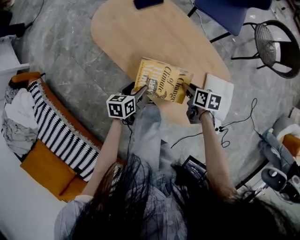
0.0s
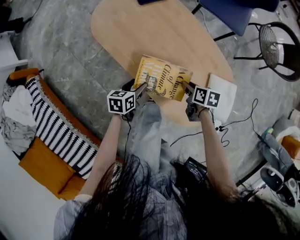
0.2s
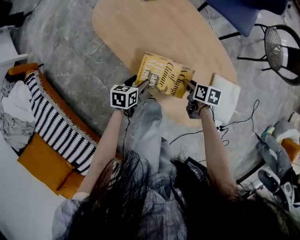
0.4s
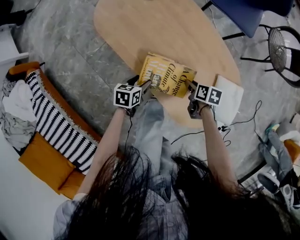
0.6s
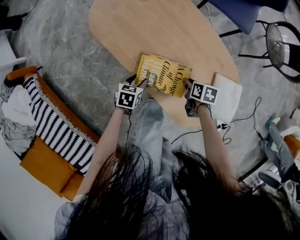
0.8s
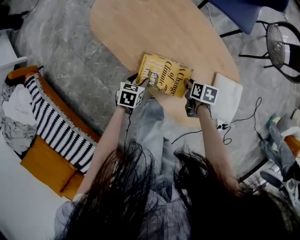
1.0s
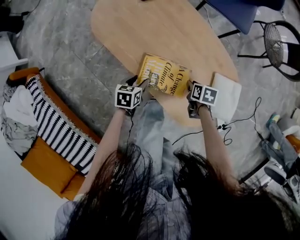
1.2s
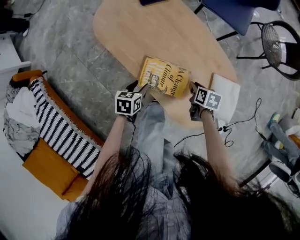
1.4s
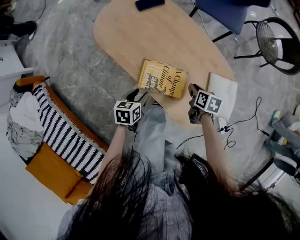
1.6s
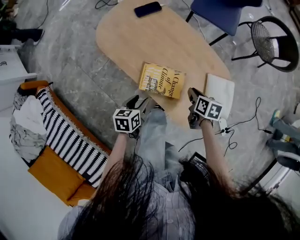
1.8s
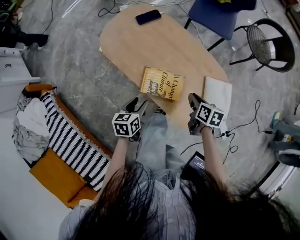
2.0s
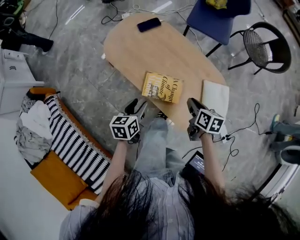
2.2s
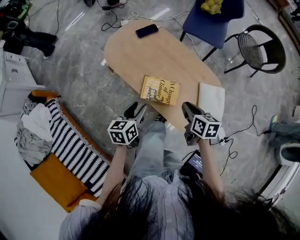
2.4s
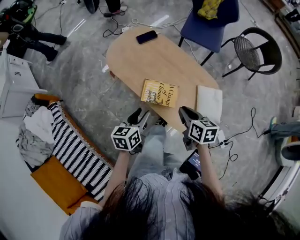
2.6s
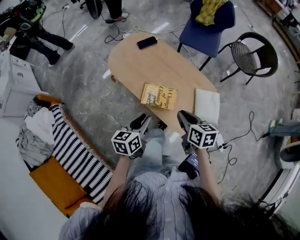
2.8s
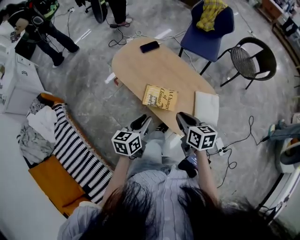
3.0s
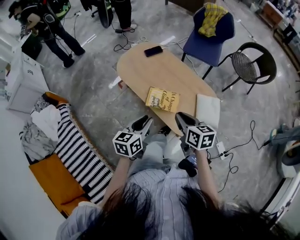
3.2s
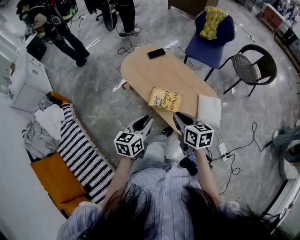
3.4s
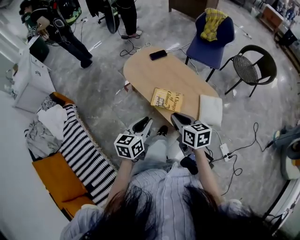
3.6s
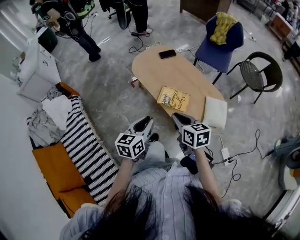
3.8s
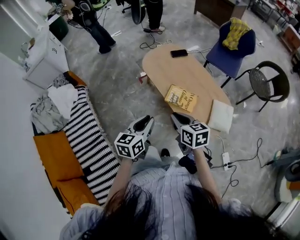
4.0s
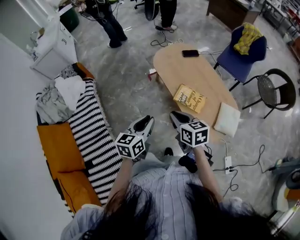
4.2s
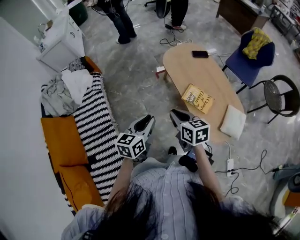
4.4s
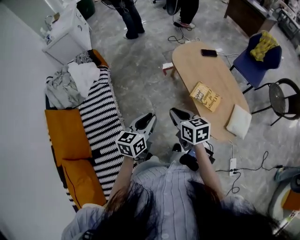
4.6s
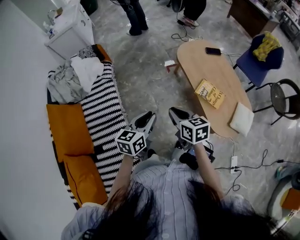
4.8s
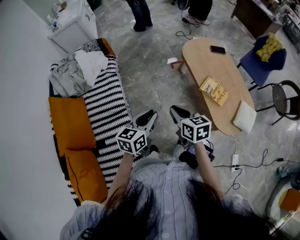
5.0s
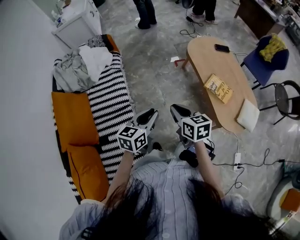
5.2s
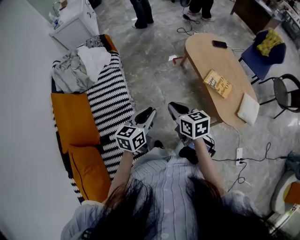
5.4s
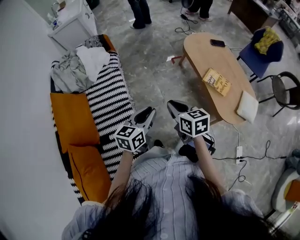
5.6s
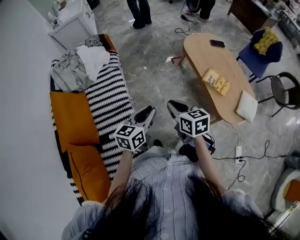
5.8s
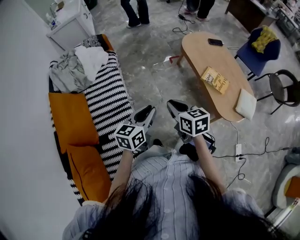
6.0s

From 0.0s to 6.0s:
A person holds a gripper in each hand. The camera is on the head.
From 0.0s to 1.6s: The right gripper goes downward and returns, approximately 10 cm each way. The left gripper moves some 10 cm downward and comes back.
From 1.6s to 3.0s: Both grippers travel together upward and backward, about 30 cm. The left gripper changes its angle by some 30 degrees, and closes its fingers, while the right gripper rotates some 30 degrees.
From 3.0s to 4.4s: The right gripper shifts by some 25 cm, and rotates roughly 30 degrees. The left gripper shifts by about 25 cm, and swivels roughly 20 degrees.
From 4.4s to 6.0s: The grippers both shift to the left and backward by roughly 25 cm.

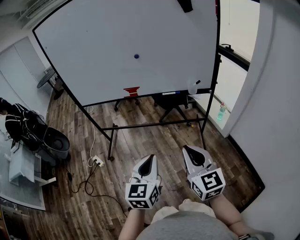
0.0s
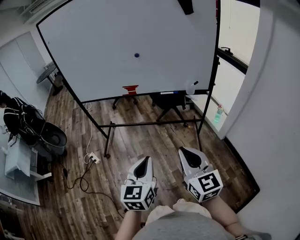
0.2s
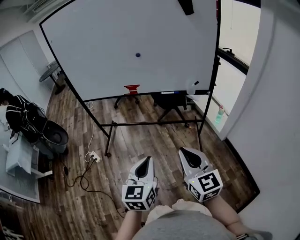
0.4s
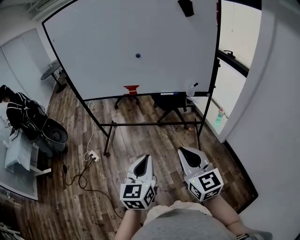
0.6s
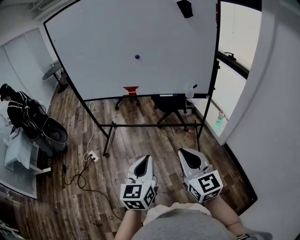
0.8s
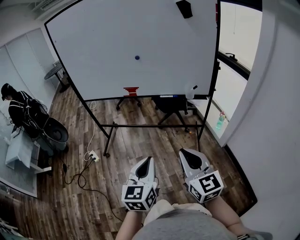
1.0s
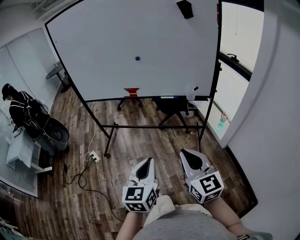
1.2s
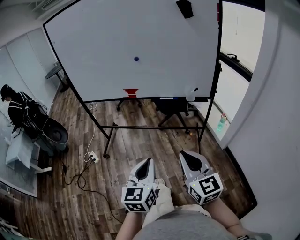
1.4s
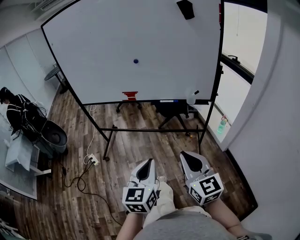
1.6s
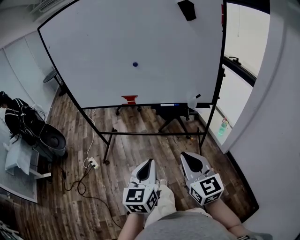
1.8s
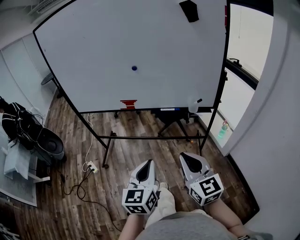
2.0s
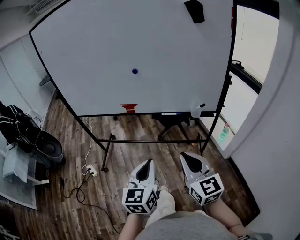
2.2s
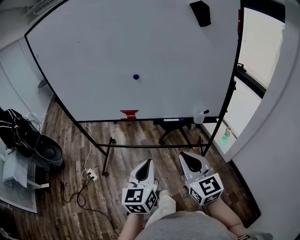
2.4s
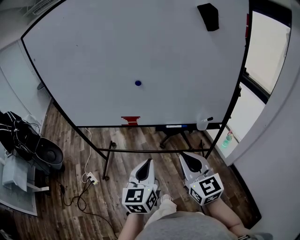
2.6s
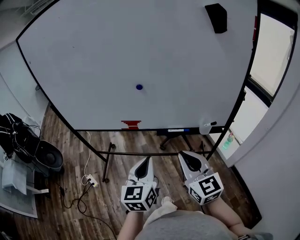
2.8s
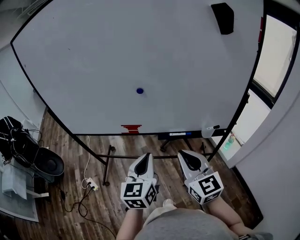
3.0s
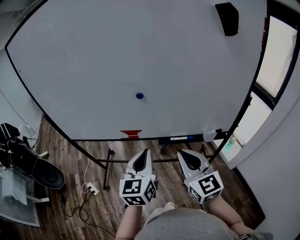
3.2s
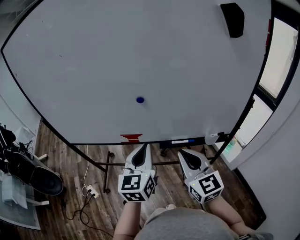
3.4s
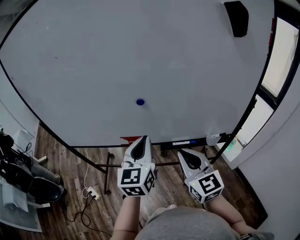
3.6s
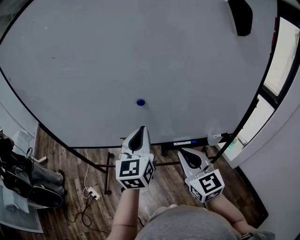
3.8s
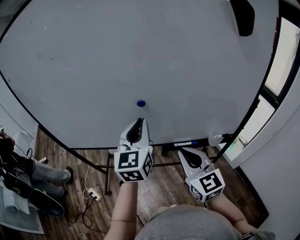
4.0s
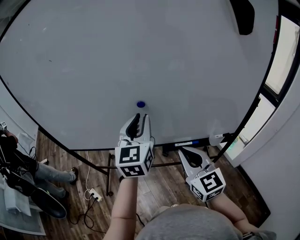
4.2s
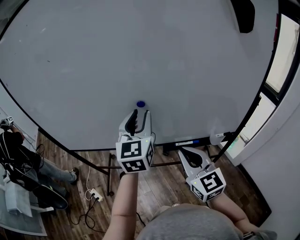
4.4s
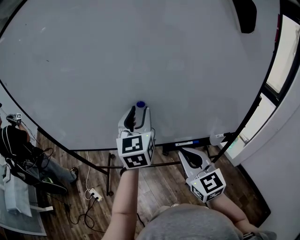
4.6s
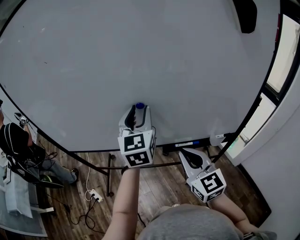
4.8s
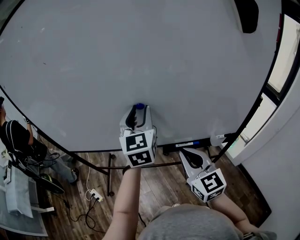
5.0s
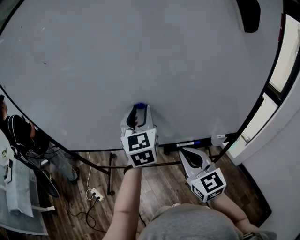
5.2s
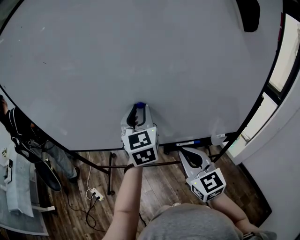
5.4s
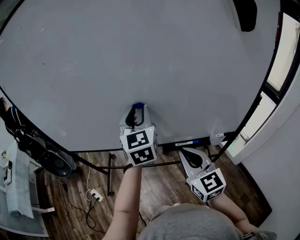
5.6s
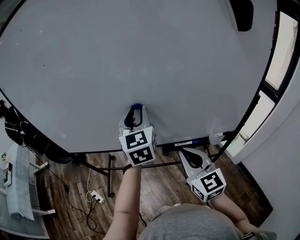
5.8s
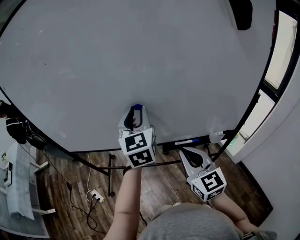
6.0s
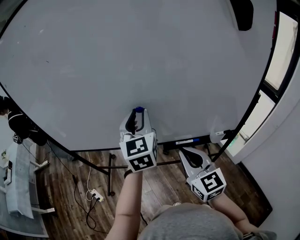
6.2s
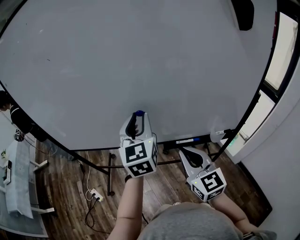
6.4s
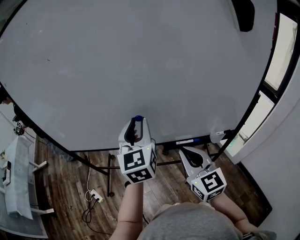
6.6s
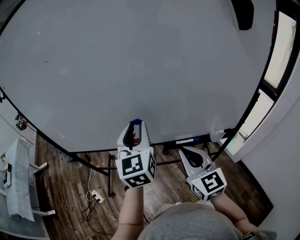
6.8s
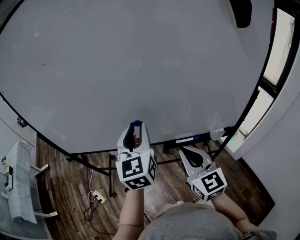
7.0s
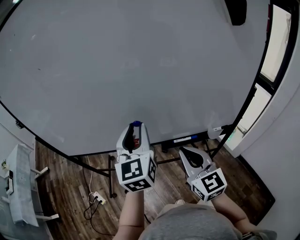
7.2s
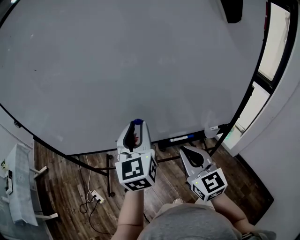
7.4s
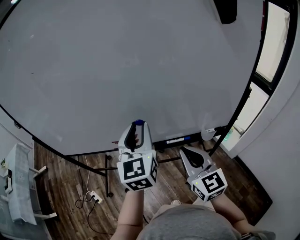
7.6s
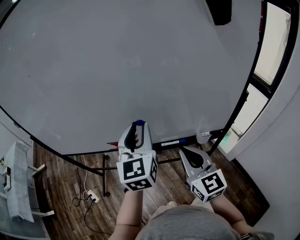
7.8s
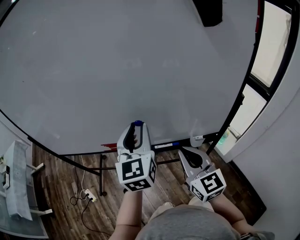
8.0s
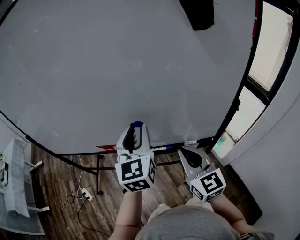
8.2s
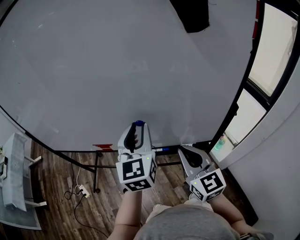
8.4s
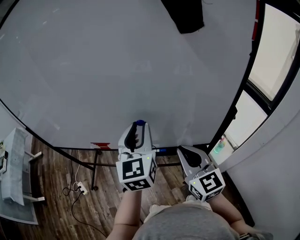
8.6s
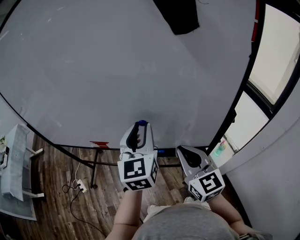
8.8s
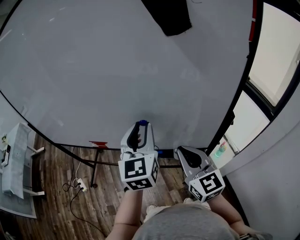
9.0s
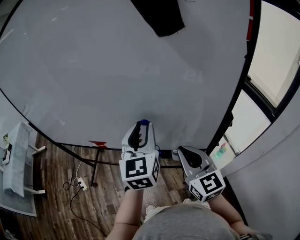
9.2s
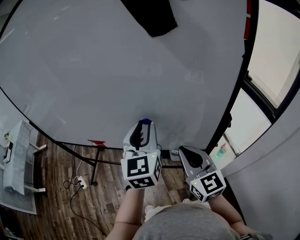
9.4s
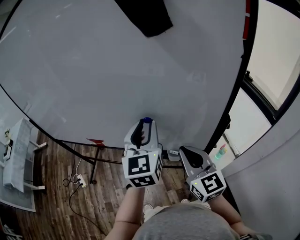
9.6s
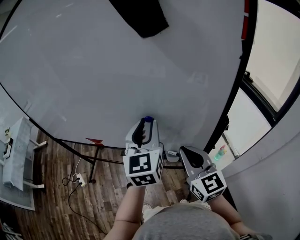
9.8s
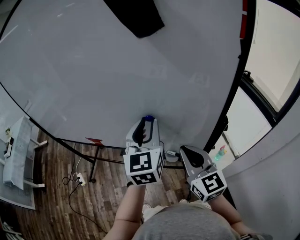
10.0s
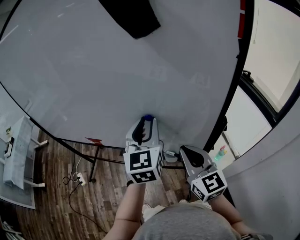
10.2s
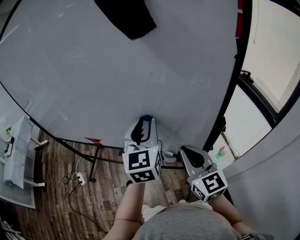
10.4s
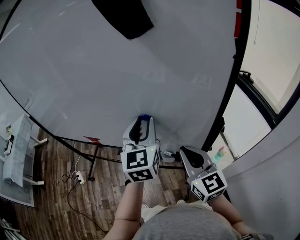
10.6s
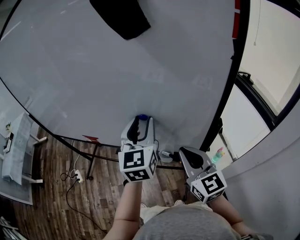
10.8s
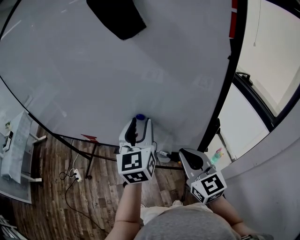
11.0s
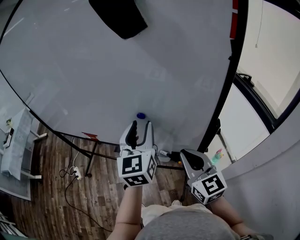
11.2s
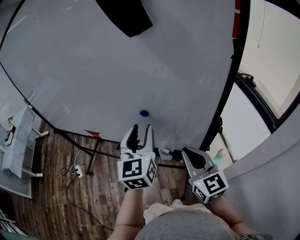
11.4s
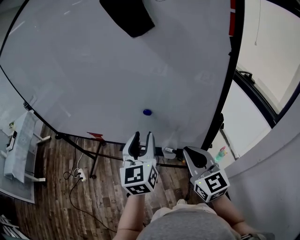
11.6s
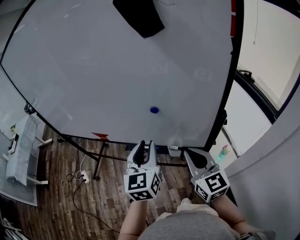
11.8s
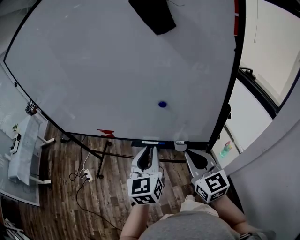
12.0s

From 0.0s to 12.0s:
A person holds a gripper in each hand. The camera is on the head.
From 0.0s to 1.6s: The grippers both shift to the right by about 5 cm.
From 1.6s to 3.0s: The grippers both shift forward by approximately 30 cm.
From 3.0s to 4.4s: The right gripper is displaced forward by roughly 10 cm, while the left gripper is displaced forward and upward by approximately 25 cm, and opens.
From 4.4s to 6.0s: The grippers move only a little.
From 6.0s to 7.6s: The left gripper is displaced backward by some 5 cm.
From 7.6s to 9.0s: Both grippers travel together to the right, some 20 cm.
From 9.0s to 10.4s: Both grippers travel together to the right, about 5 cm.
From 10.4s to 12.0s: The left gripper is displaced backward, to the left and downward by some 15 cm. The right gripper heads backward and to the left, covering approximately 10 cm.

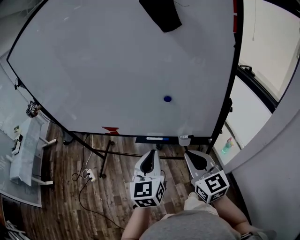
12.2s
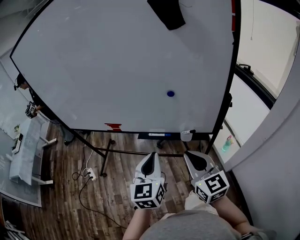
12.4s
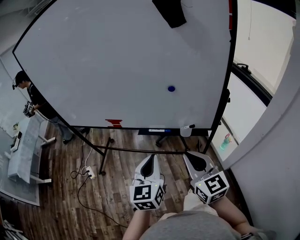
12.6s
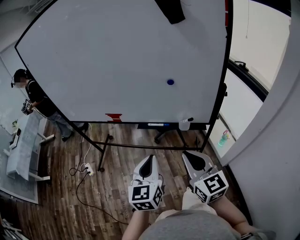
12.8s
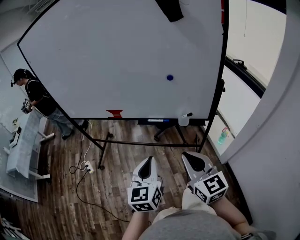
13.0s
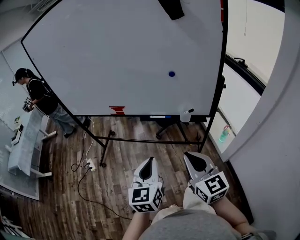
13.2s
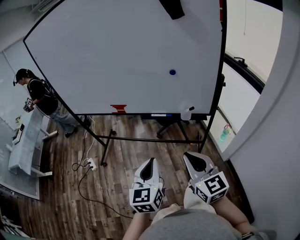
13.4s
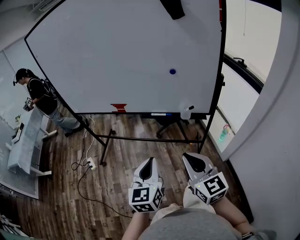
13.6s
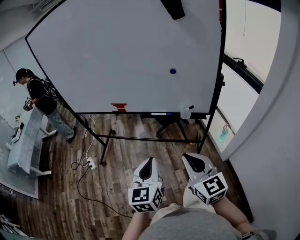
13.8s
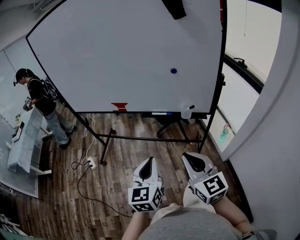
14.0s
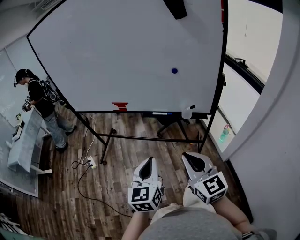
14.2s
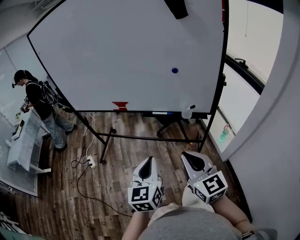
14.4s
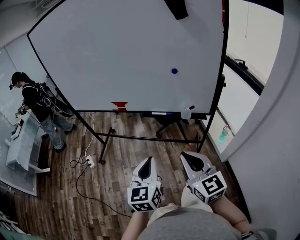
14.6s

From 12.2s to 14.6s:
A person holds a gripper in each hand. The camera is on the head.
From 12.2s to 13.4s: Both grippers travel together backward and to the left, approximately 20 cm.
From 13.4s to 14.6s: The grippers make only small movements.

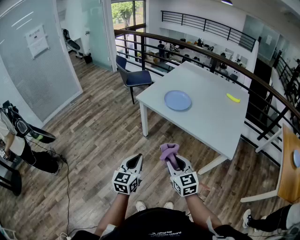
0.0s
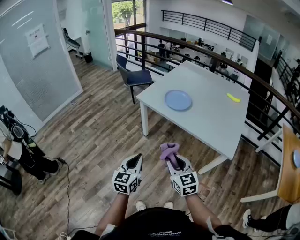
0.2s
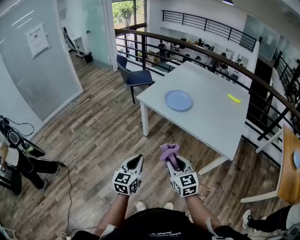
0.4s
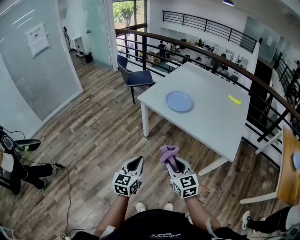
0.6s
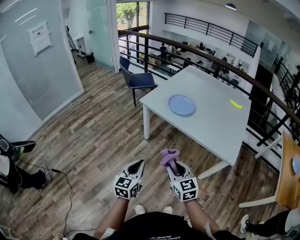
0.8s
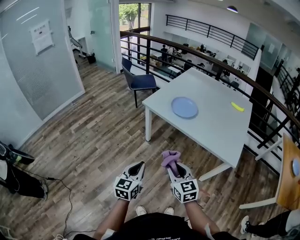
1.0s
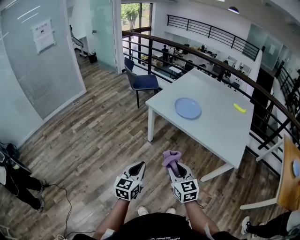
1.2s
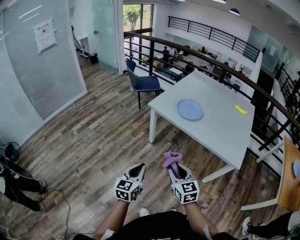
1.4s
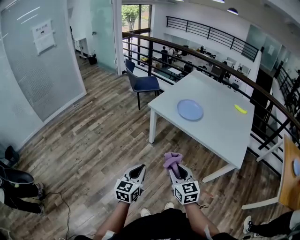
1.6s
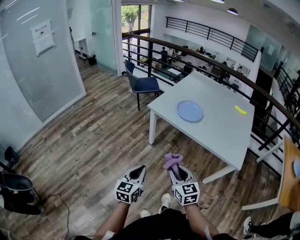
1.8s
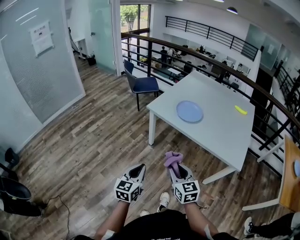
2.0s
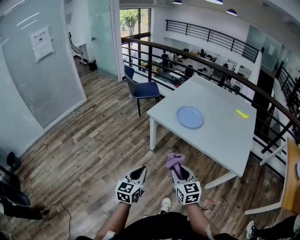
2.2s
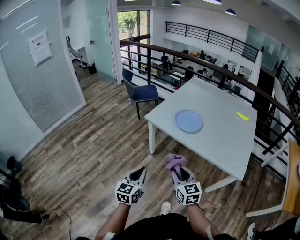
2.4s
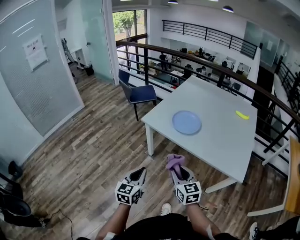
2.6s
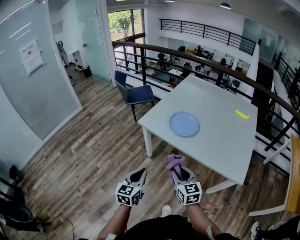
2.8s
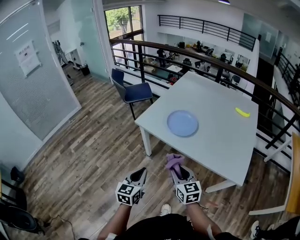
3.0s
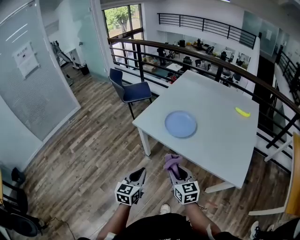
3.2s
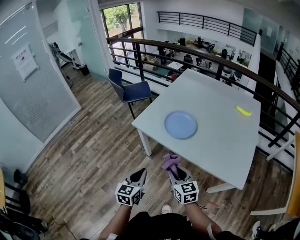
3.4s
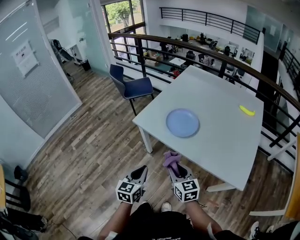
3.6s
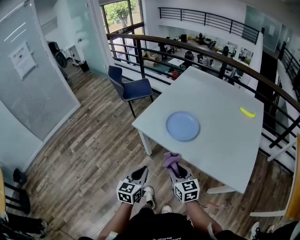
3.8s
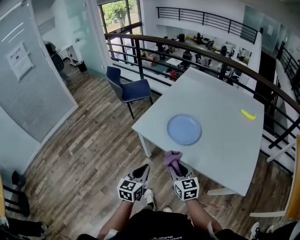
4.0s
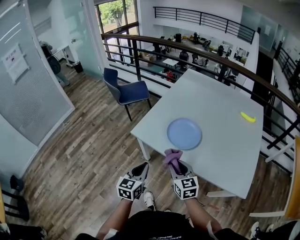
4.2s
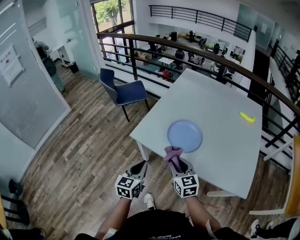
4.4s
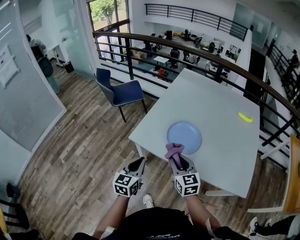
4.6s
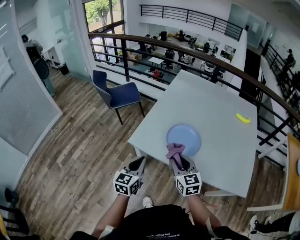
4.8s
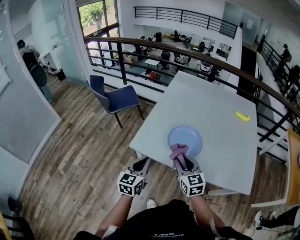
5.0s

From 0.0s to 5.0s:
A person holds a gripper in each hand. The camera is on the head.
From 0.0s to 1.6s: The grippers both shift to the left by about 10 cm.
From 1.6s to 3.4s: Both grippers move forward and to the right, some 25 cm.
From 3.4s to 5.0s: The two grippers go about 25 cm forward.
